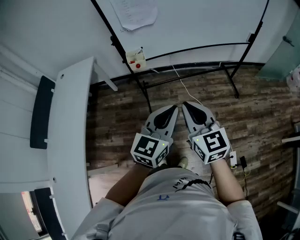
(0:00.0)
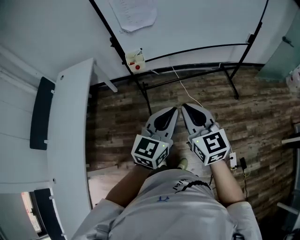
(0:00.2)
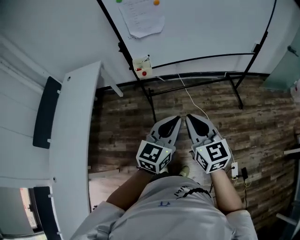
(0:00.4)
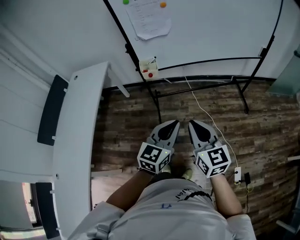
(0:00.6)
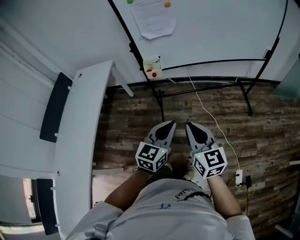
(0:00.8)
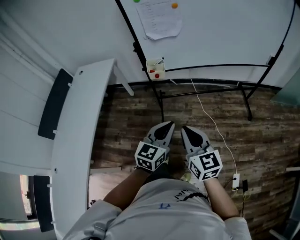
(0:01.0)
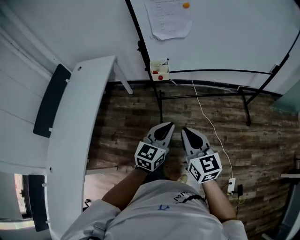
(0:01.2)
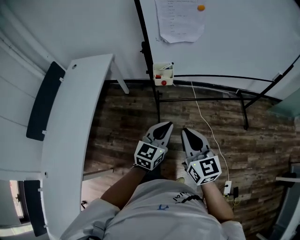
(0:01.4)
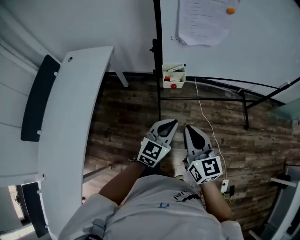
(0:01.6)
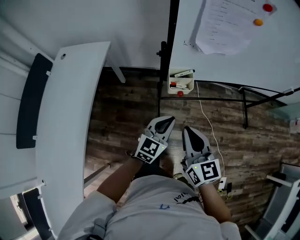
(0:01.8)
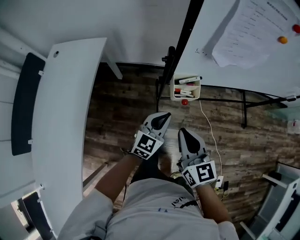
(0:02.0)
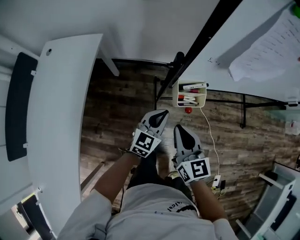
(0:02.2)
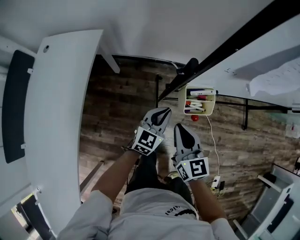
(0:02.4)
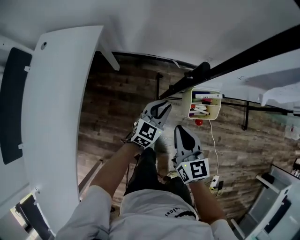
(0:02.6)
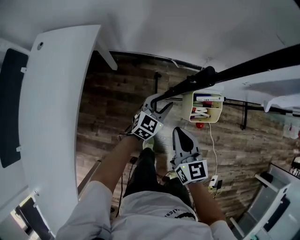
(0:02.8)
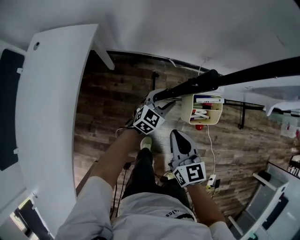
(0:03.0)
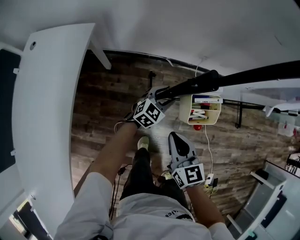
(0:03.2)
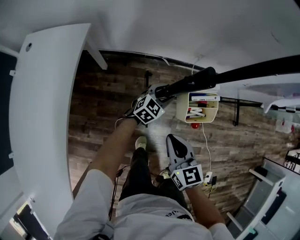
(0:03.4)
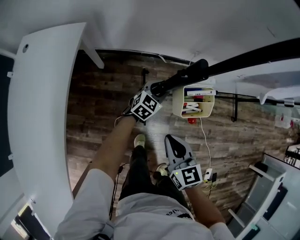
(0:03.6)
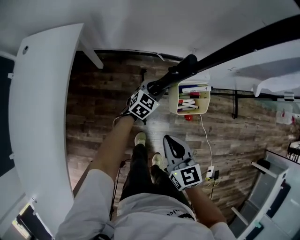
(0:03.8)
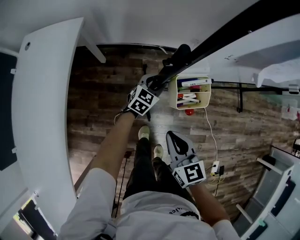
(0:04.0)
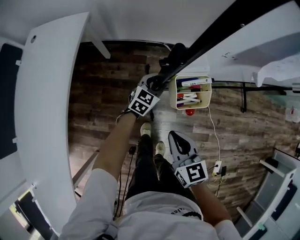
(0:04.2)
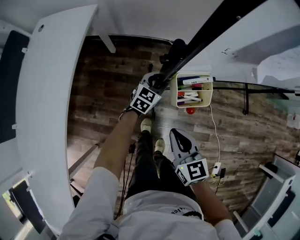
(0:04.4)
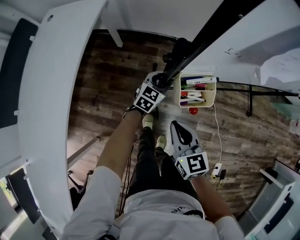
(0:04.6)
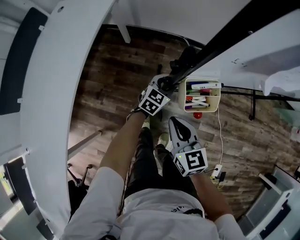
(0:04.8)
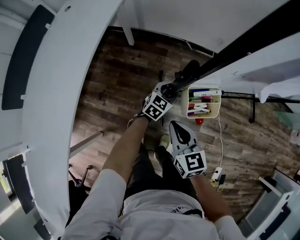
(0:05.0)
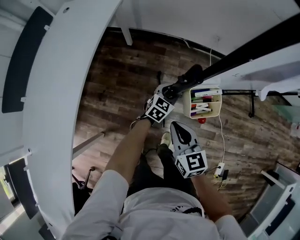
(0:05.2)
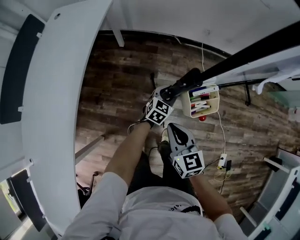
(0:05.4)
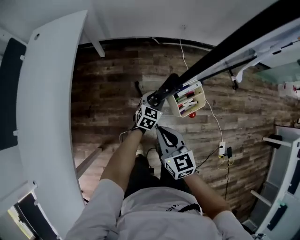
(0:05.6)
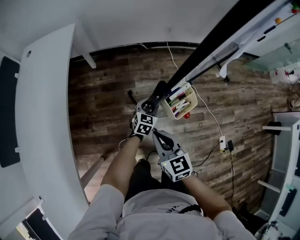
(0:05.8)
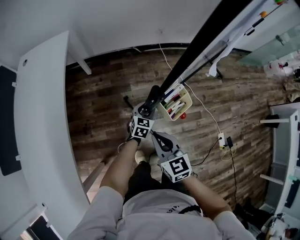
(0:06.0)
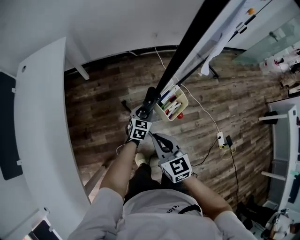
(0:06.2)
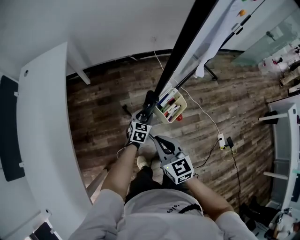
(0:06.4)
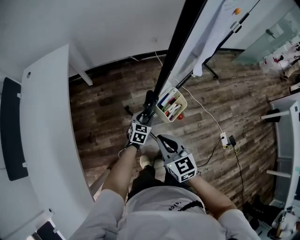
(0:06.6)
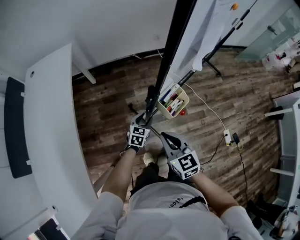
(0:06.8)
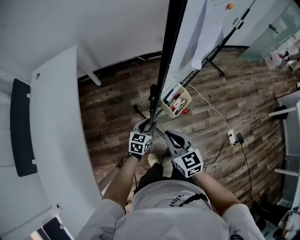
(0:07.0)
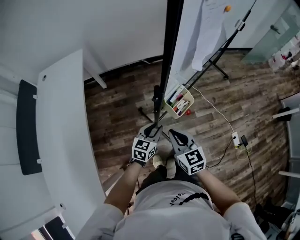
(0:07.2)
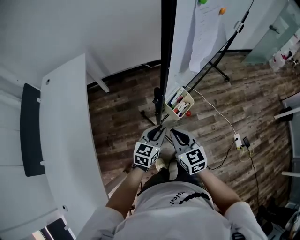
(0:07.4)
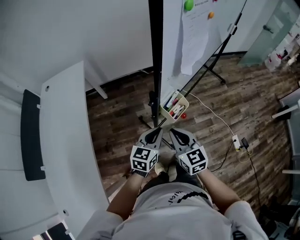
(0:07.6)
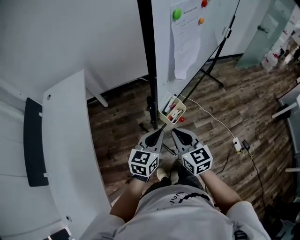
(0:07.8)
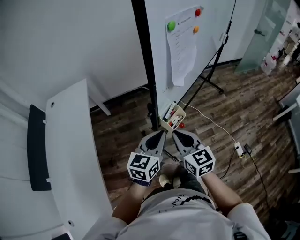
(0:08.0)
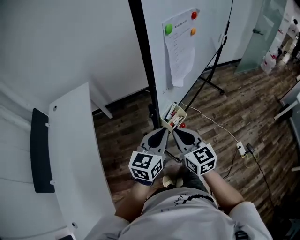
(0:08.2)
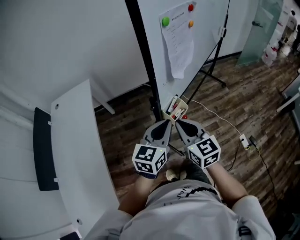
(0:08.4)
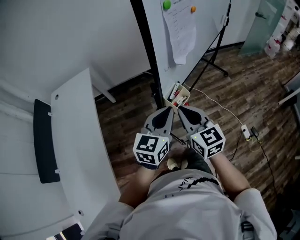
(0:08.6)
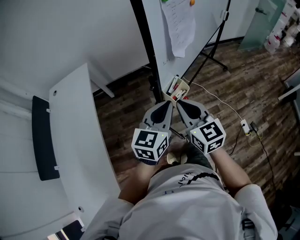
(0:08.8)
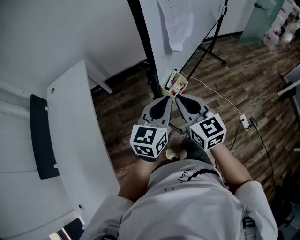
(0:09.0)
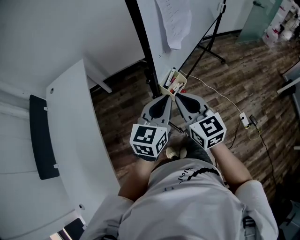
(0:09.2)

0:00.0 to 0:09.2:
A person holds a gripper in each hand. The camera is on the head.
0:00.0 to 0:01.6: The right gripper is displaced to the left, forward and downward by approximately 25 cm, while the left gripper moves forward, to the left and downward, roughly 30 cm.
0:01.6 to 0:03.0: The right gripper goes approximately 30 cm downward, forward and to the left. Meanwhile the left gripper heads forward, downward and to the left, covering roughly 40 cm, and opens its fingers.
0:03.0 to 0:04.6: The left gripper moves about 5 cm, while the right gripper is displaced backward and to the right by roughly 10 cm.
0:04.6 to 0:06.2: Both grippers travel together backward, roughly 30 cm.
0:06.2 to 0:07.6: The right gripper heads upward, covering roughly 10 cm. Meanwhile the left gripper is displaced upward and backward by approximately 25 cm, and closes.
0:07.6 to 0:09.2: The two grippers go roughly 15 cm upward.

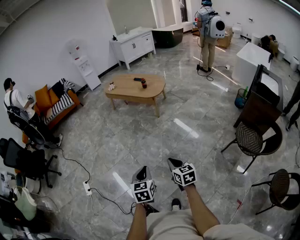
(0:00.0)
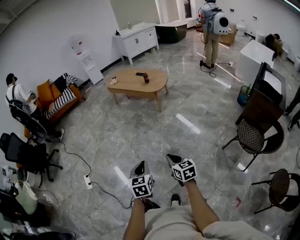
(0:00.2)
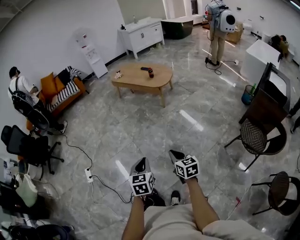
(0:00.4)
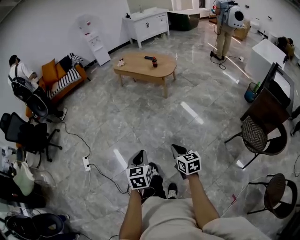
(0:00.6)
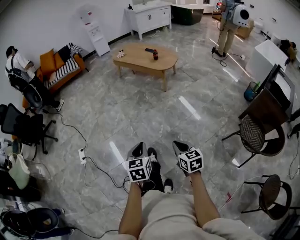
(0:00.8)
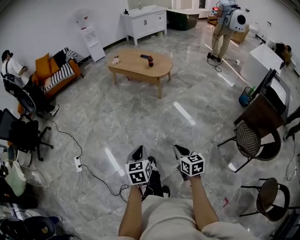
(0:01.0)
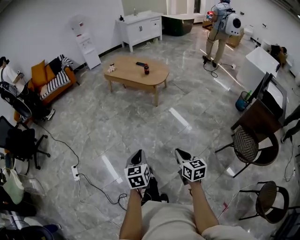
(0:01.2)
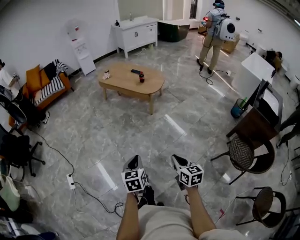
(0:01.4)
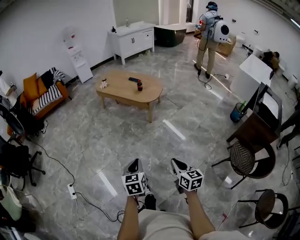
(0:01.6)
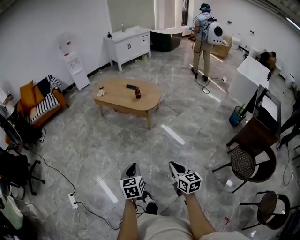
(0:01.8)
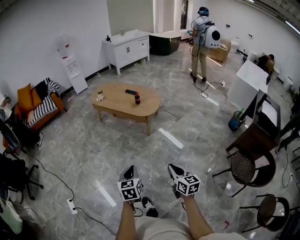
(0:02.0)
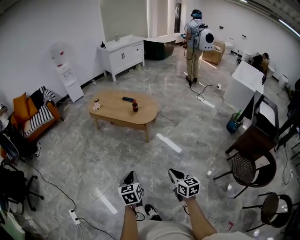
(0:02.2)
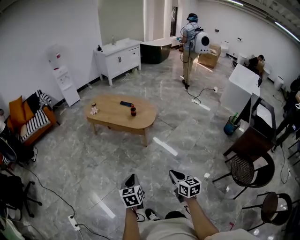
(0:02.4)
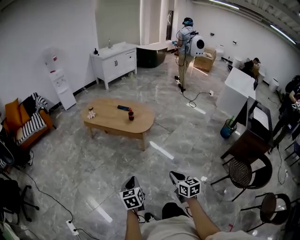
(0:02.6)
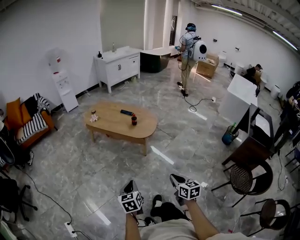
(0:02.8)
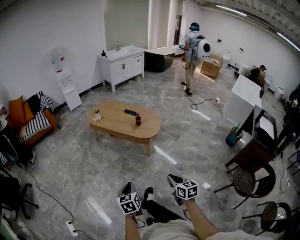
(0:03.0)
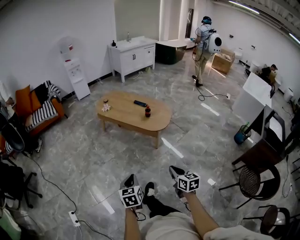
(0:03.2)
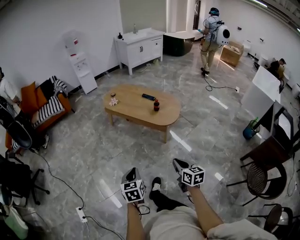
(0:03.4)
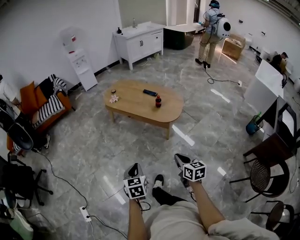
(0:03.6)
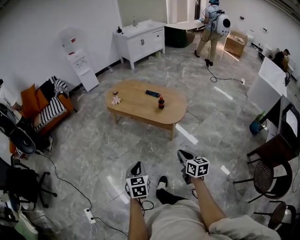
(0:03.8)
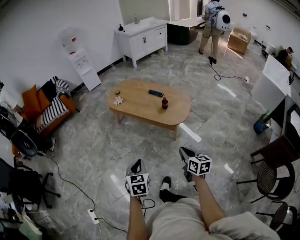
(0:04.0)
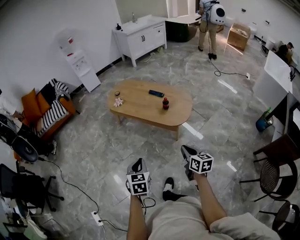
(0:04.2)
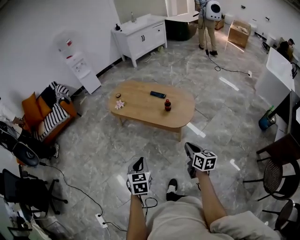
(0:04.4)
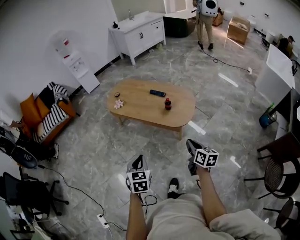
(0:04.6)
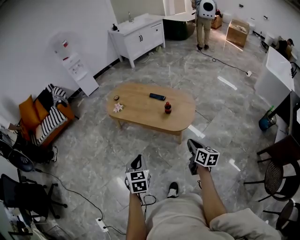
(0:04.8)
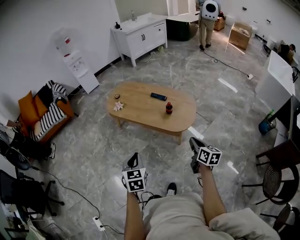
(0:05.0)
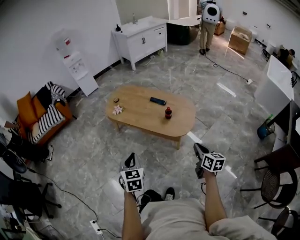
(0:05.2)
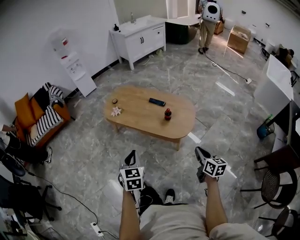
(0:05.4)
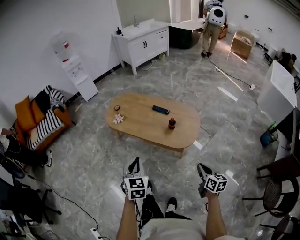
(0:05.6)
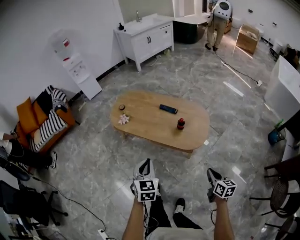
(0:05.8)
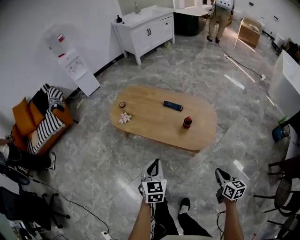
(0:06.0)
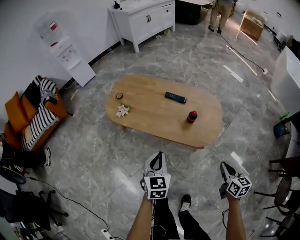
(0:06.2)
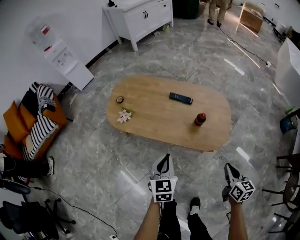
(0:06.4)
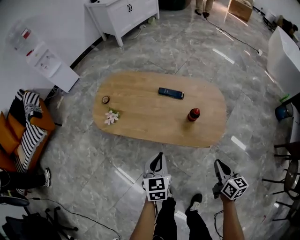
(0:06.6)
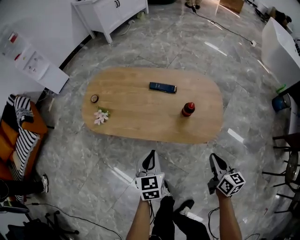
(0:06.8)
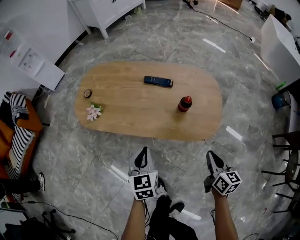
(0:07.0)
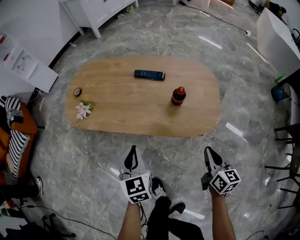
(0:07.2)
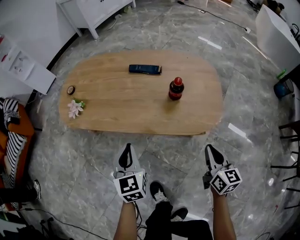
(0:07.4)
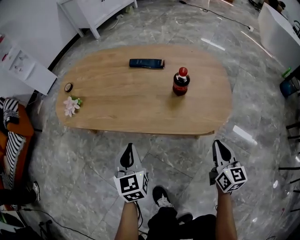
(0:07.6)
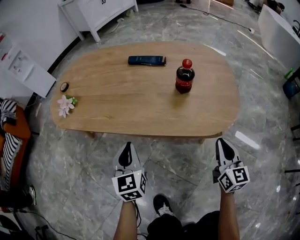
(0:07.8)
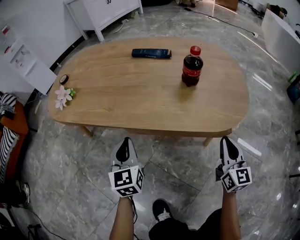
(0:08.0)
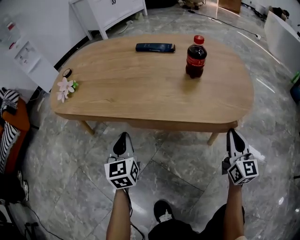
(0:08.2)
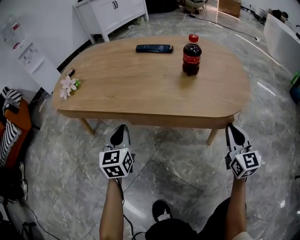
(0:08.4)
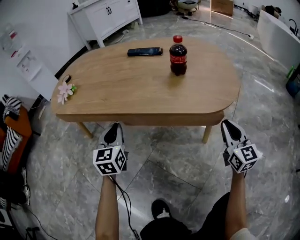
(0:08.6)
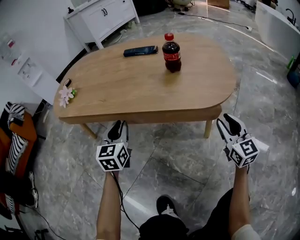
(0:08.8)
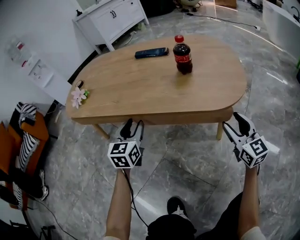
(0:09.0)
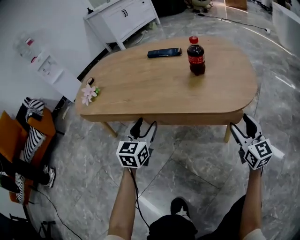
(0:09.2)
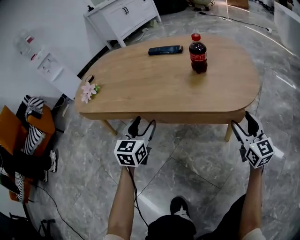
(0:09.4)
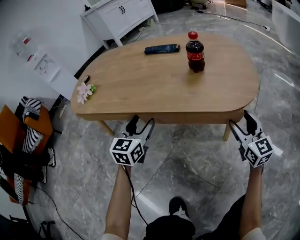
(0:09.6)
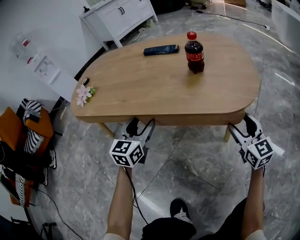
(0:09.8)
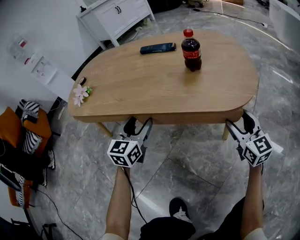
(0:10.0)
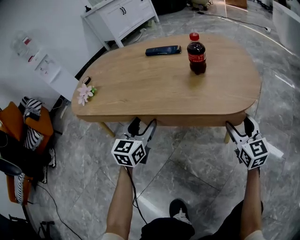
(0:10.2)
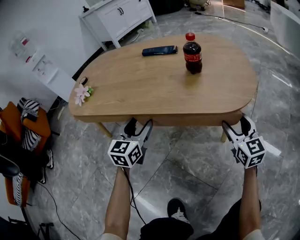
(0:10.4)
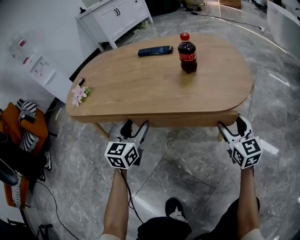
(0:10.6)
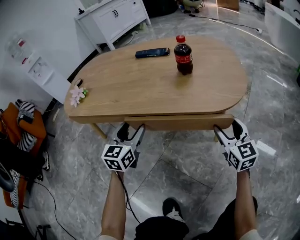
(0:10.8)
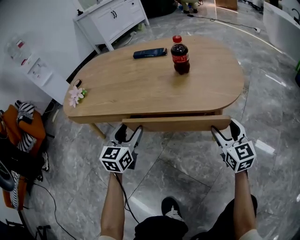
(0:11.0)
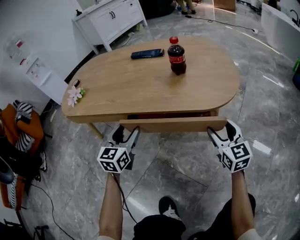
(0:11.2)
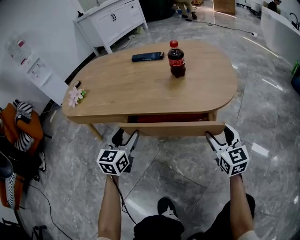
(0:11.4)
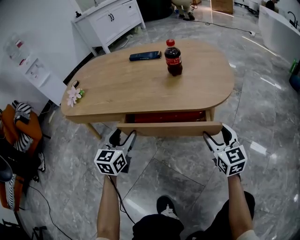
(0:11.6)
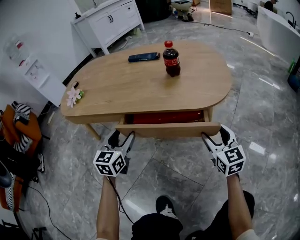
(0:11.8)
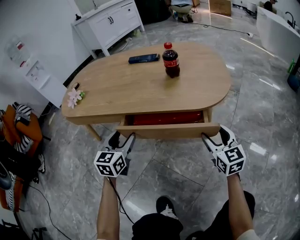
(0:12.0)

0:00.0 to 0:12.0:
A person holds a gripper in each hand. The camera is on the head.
0:00.0 to 0:01.6: The left gripper moves forward, about 20 cm. Meanwhile the right gripper is displaced forward and to the right by some 15 cm.
0:01.6 to 0:03.0: The left gripper heads forward and to the left, covering roughly 25 cm, while the right gripper heads forward, covering roughly 25 cm.
0:03.0 to 0:04.4: The two grippers go approximately 30 cm forward. The left gripper turns by about 20 degrees.
0:04.4 to 0:06.0: The left gripper travels forward by approximately 25 cm. Meanwhile the right gripper shifts approximately 15 cm forward and downward.
0:06.0 to 0:07.6: Both grippers travel together downward and forward, roughly 35 cm. The right gripper rotates roughly 30 degrees.
0:07.6 to 0:09.0: The right gripper travels downward by approximately 10 cm, rotates approximately 20 degrees, and opens. Meanwhile the left gripper moves downward and forward, roughly 10 cm, and opens its fingers.
0:09.0 to 0:10.4: The left gripper opens.
0:10.4 to 0:12.0: Both grippers travel together backward, roughly 5 cm.

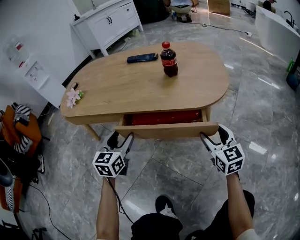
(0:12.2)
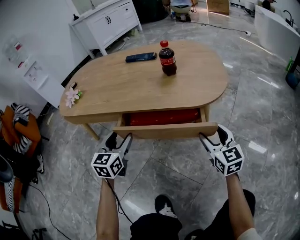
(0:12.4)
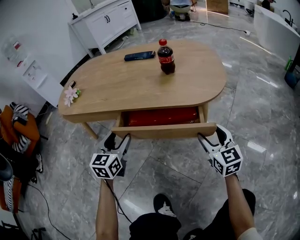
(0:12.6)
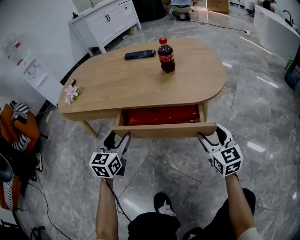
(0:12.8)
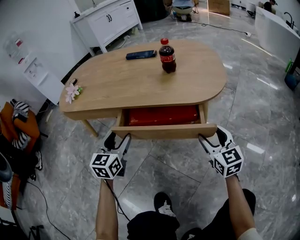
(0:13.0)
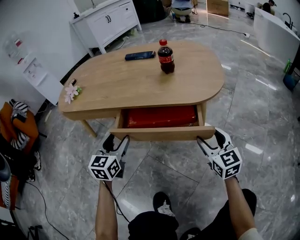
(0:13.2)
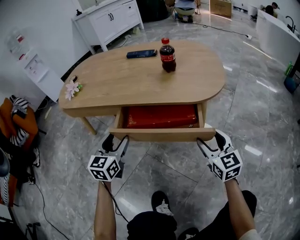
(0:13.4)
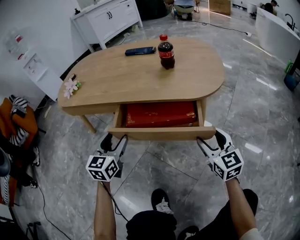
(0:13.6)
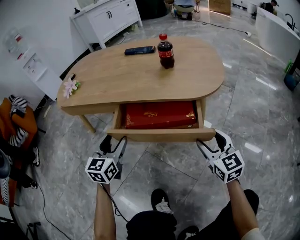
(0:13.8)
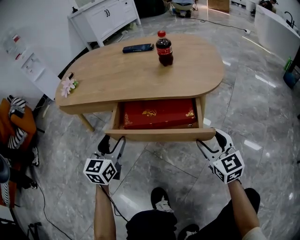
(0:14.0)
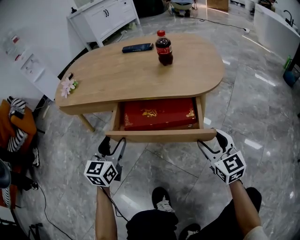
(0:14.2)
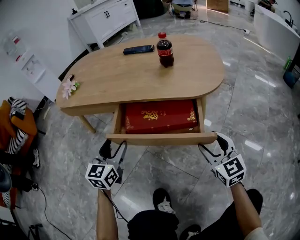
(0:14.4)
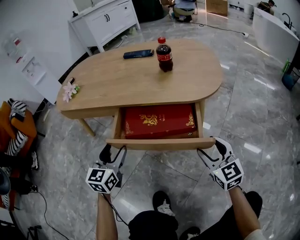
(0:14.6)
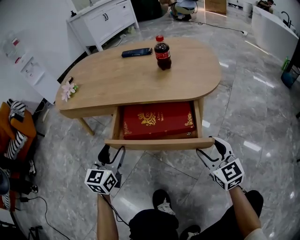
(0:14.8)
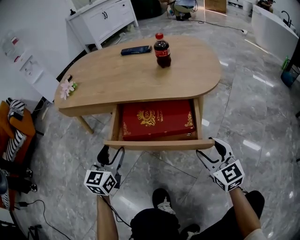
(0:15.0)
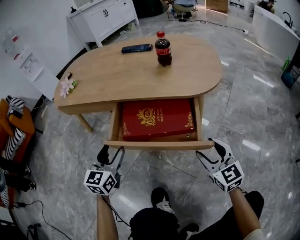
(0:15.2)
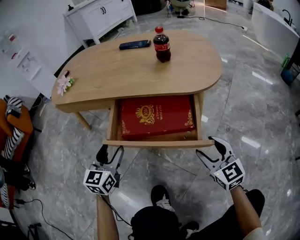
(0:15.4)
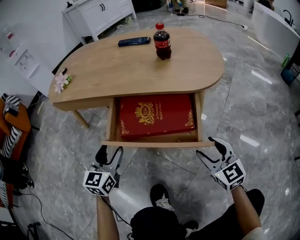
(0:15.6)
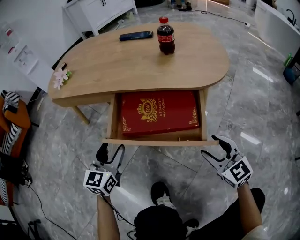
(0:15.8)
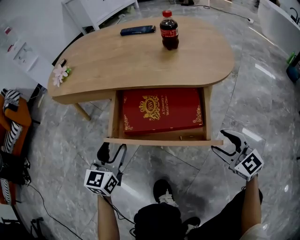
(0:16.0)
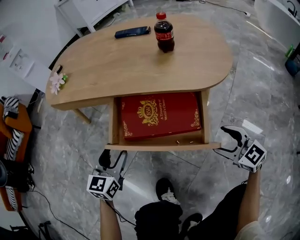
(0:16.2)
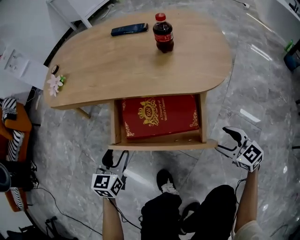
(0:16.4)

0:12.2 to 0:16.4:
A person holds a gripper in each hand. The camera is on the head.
0:12.2 to 0:13.6: The two grippers go approximately 5 cm backward.
0:13.6 to 0:15.0: The right gripper goes approximately 5 cm backward.
0:15.0 to 0:16.4: The right gripper shifts approximately 5 cm to the right, and rotates about 20 degrees.
